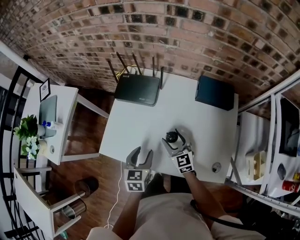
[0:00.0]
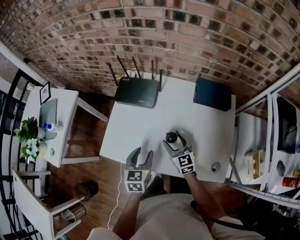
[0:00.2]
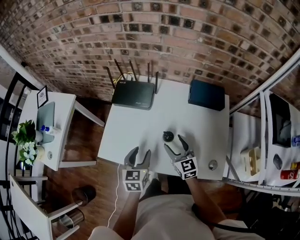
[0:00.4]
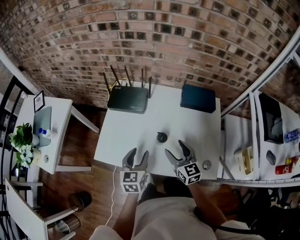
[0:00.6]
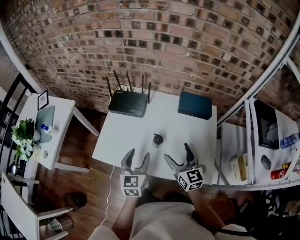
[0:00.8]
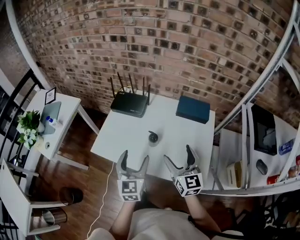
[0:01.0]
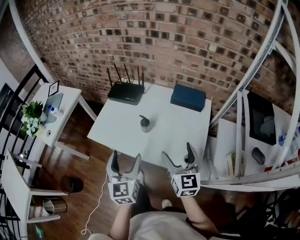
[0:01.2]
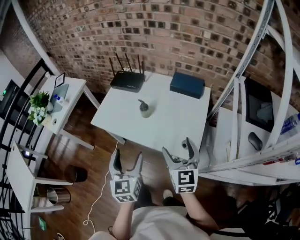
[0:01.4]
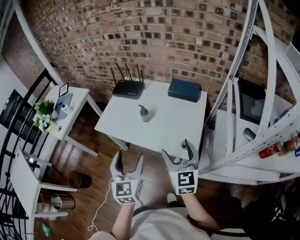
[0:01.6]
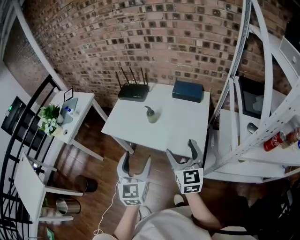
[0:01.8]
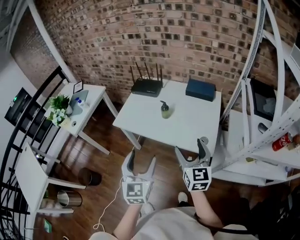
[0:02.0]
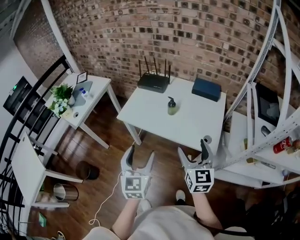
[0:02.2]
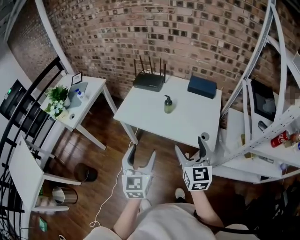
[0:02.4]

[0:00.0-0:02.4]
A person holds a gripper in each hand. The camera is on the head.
0:00.0 to 0:01.2: The left gripper travels upward and backward by approximately 25 cm, changes its angle by roughly 30 degrees, and opens up, while the right gripper travels backward, upward and to the right by some 35 cm.
0:01.2 to 0:02.4: Both grippers move backward and to the left, approximately 20 cm.

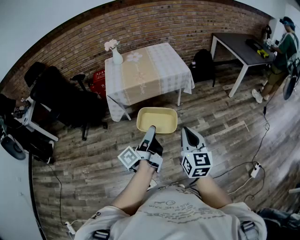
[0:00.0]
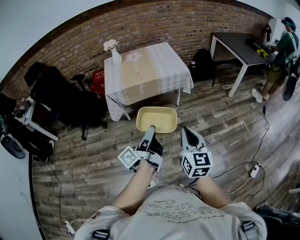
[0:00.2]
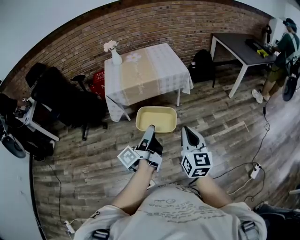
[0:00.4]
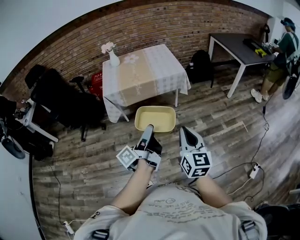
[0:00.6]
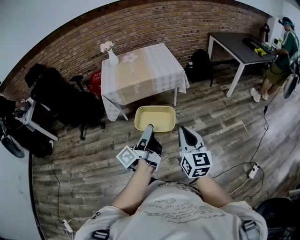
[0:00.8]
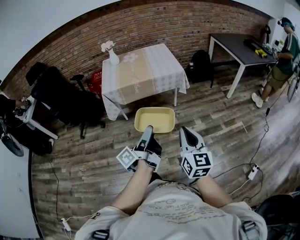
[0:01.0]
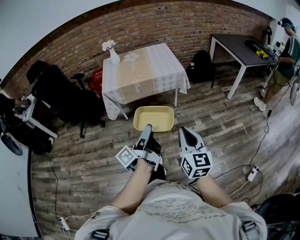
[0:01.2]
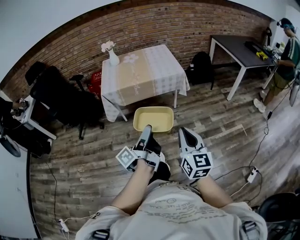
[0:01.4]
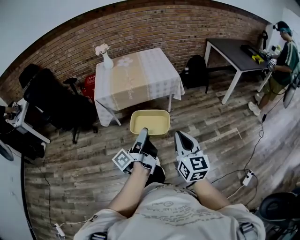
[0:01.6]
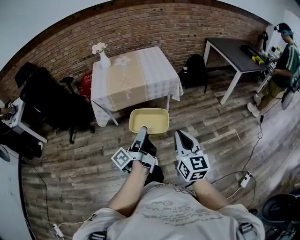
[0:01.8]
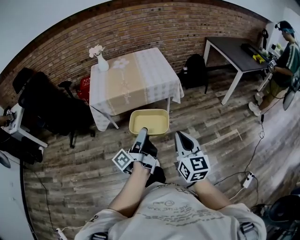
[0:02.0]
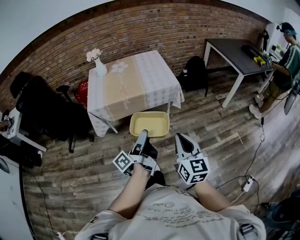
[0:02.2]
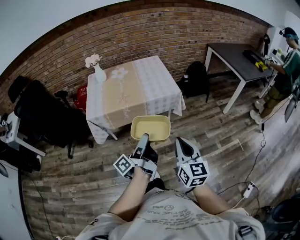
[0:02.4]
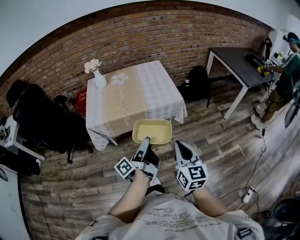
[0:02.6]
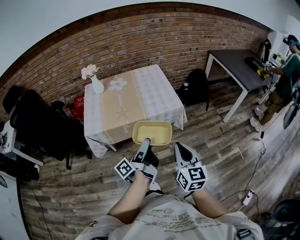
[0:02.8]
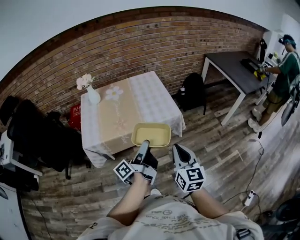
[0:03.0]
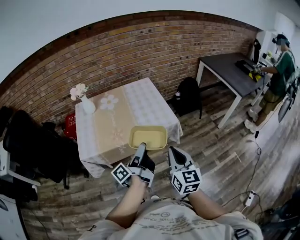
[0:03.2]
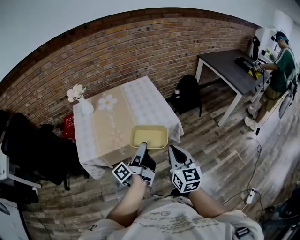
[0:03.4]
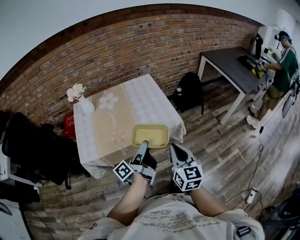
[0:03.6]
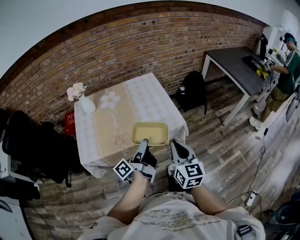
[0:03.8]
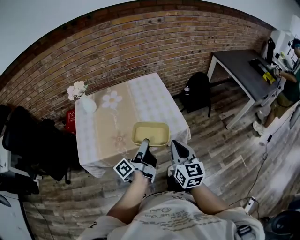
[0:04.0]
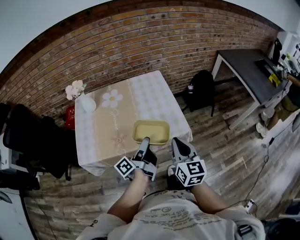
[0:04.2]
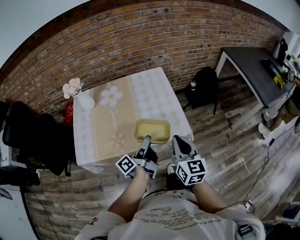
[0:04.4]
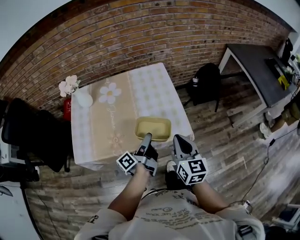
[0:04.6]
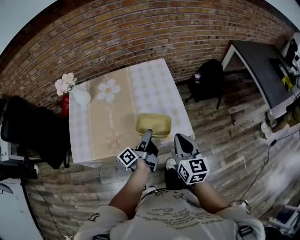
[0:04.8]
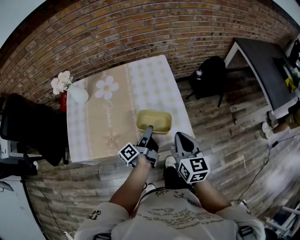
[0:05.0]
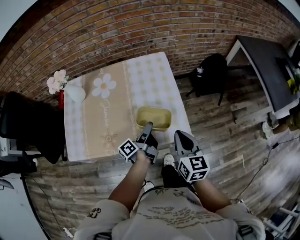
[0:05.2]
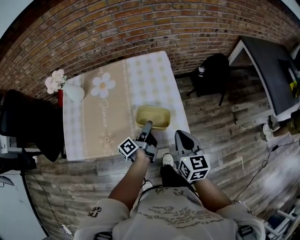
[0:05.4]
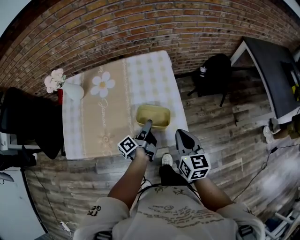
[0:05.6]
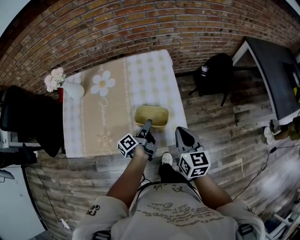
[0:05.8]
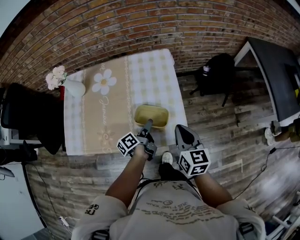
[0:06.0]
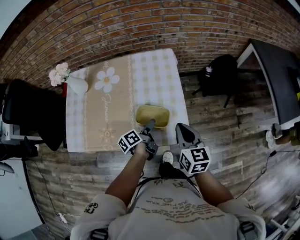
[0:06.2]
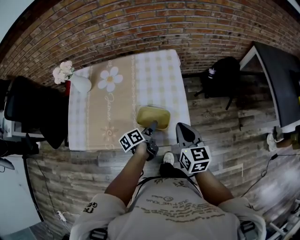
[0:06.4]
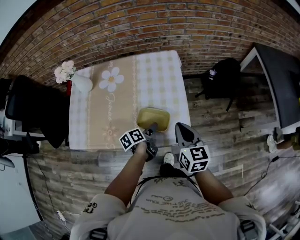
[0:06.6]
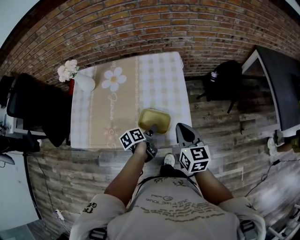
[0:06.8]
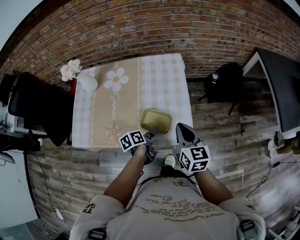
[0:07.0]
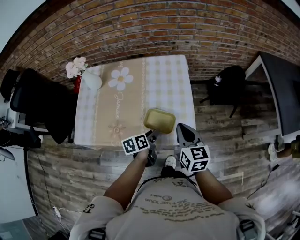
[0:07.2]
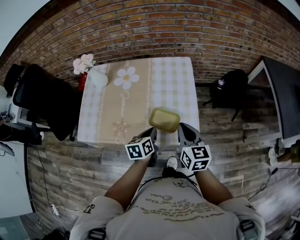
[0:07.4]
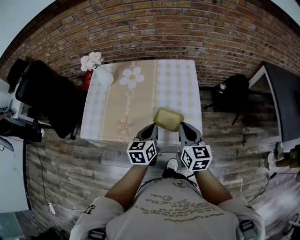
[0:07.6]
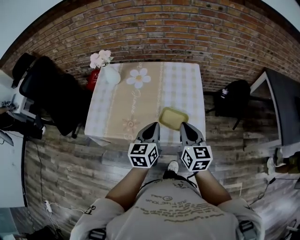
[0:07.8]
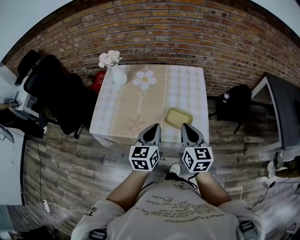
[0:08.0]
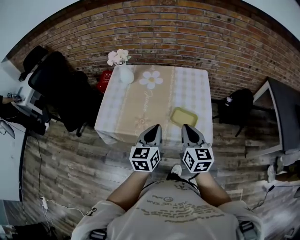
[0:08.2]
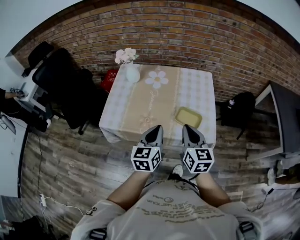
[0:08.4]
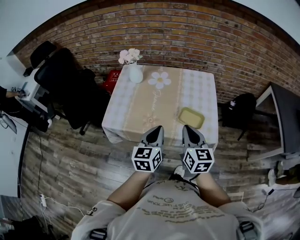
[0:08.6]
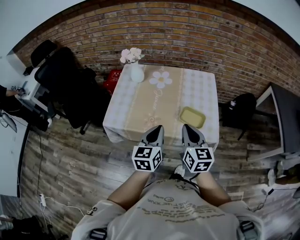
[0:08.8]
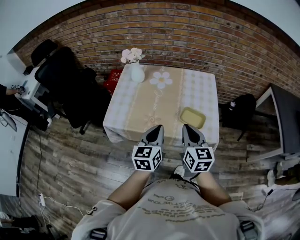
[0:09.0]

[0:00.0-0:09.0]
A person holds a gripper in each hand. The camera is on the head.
0:00.0 to 0:01.6: The right gripper ends up about 5 cm from where it was.
0:01.6 to 0:03.0: The right gripper moves approximately 35 cm.
0:03.0 to 0:04.4: The right gripper changes place by some 30 cm.
0:04.4 to 0:06.0: The right gripper moves some 20 cm.
0:06.0 to 0:07.6: The right gripper ends up some 10 cm from where it was.
0:07.6 to 0:09.0: The right gripper moves some 20 cm.

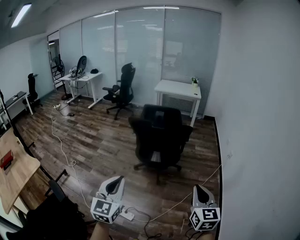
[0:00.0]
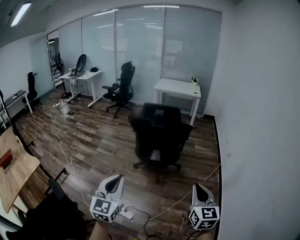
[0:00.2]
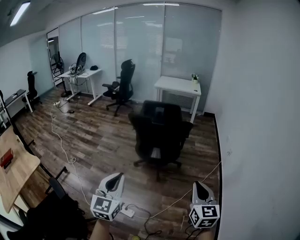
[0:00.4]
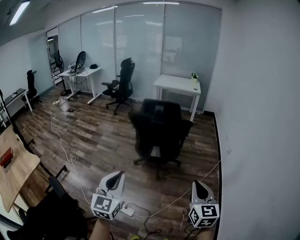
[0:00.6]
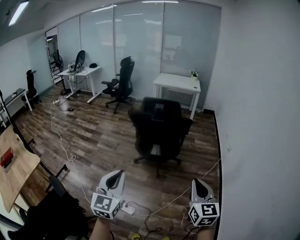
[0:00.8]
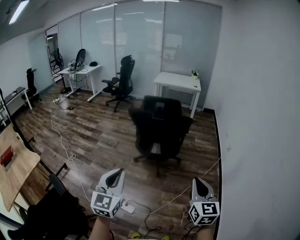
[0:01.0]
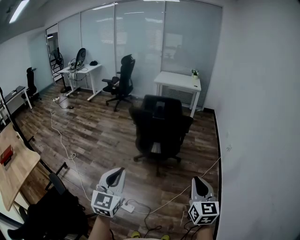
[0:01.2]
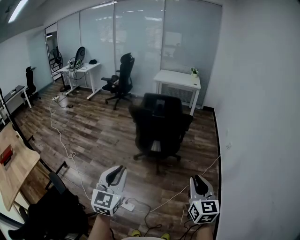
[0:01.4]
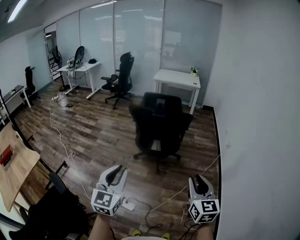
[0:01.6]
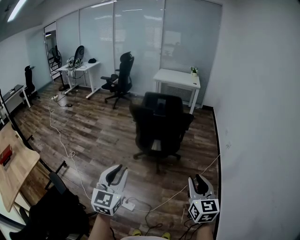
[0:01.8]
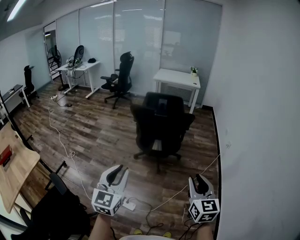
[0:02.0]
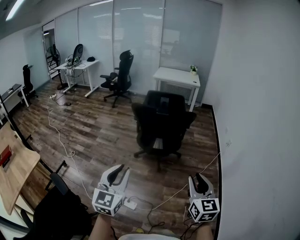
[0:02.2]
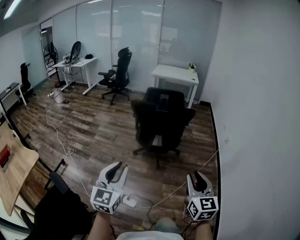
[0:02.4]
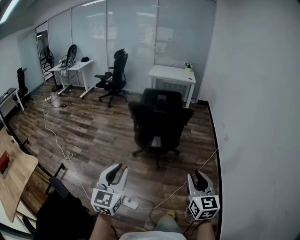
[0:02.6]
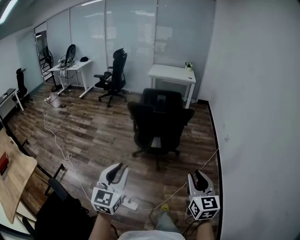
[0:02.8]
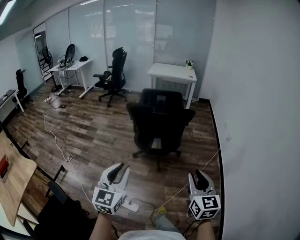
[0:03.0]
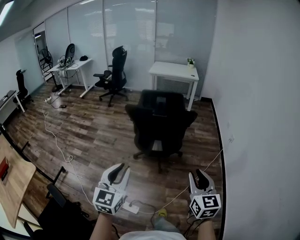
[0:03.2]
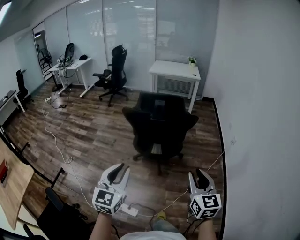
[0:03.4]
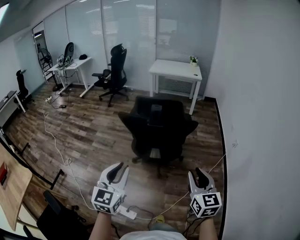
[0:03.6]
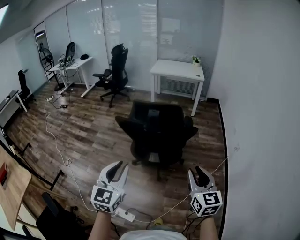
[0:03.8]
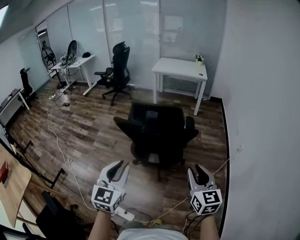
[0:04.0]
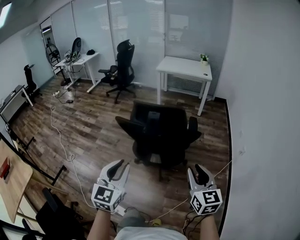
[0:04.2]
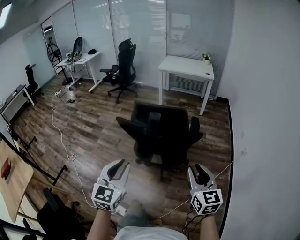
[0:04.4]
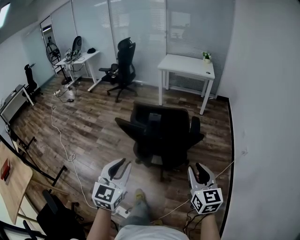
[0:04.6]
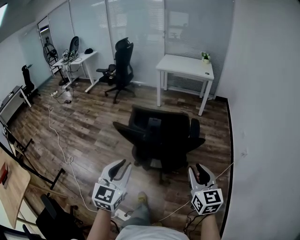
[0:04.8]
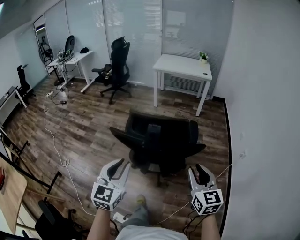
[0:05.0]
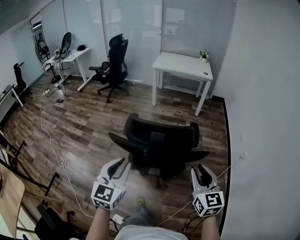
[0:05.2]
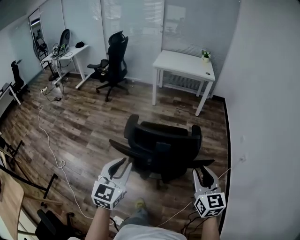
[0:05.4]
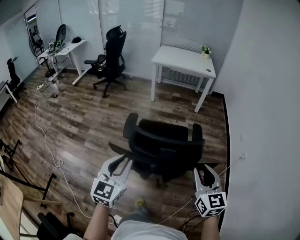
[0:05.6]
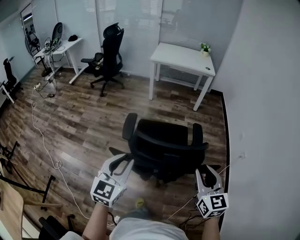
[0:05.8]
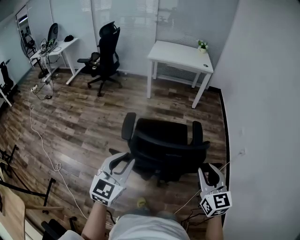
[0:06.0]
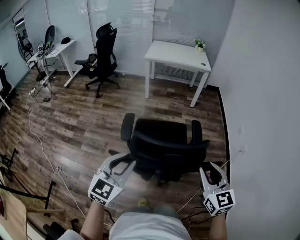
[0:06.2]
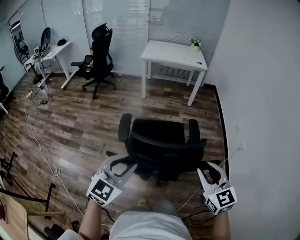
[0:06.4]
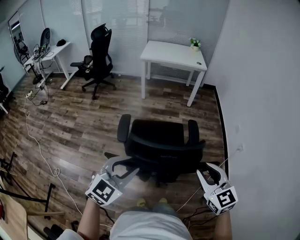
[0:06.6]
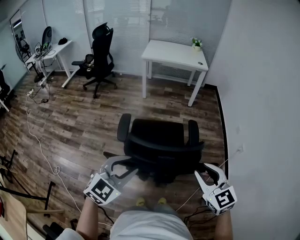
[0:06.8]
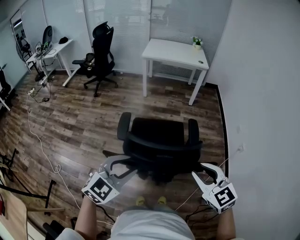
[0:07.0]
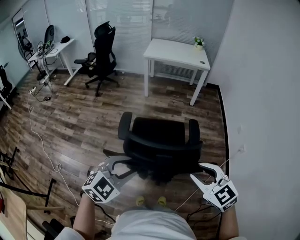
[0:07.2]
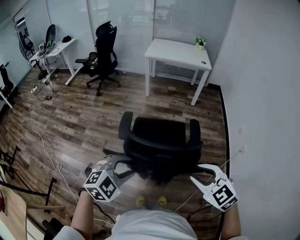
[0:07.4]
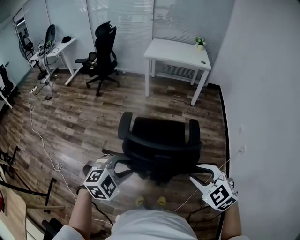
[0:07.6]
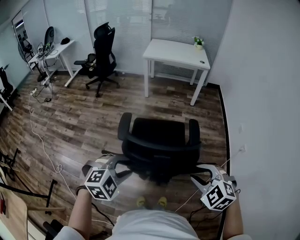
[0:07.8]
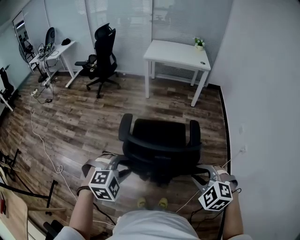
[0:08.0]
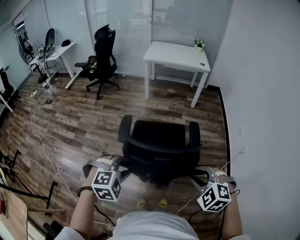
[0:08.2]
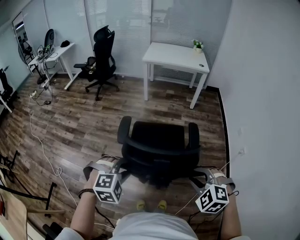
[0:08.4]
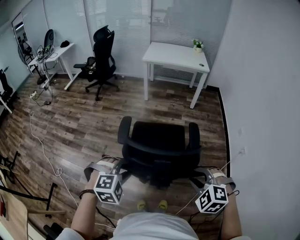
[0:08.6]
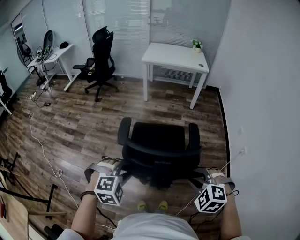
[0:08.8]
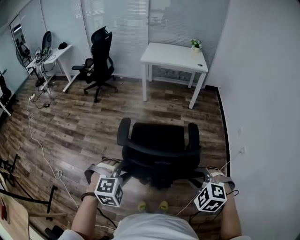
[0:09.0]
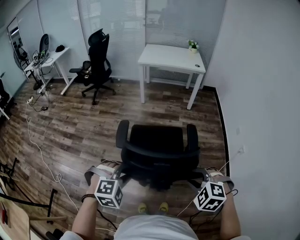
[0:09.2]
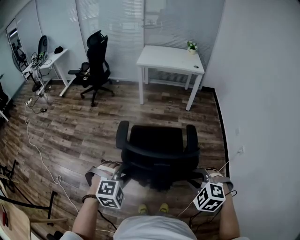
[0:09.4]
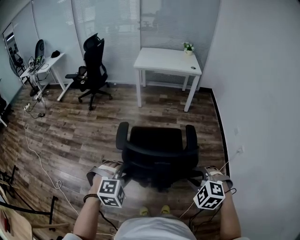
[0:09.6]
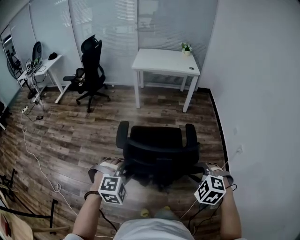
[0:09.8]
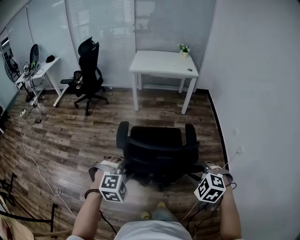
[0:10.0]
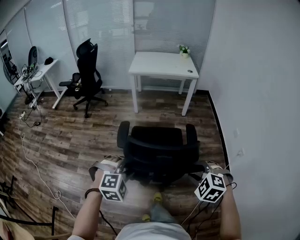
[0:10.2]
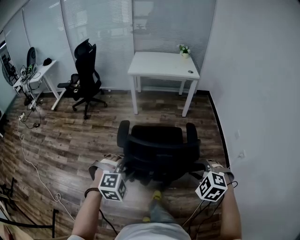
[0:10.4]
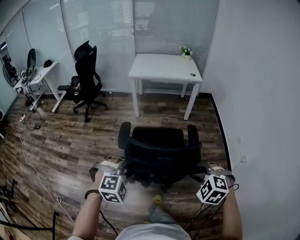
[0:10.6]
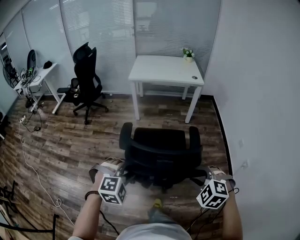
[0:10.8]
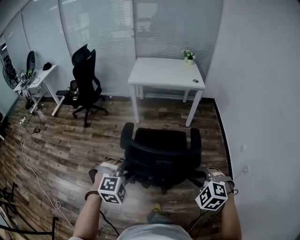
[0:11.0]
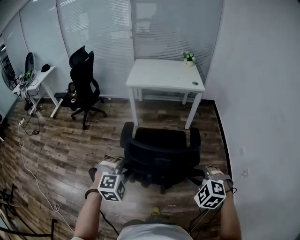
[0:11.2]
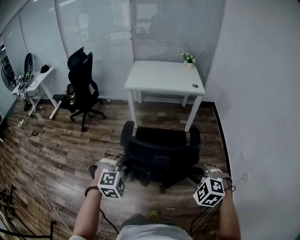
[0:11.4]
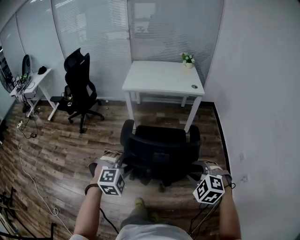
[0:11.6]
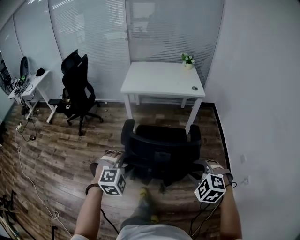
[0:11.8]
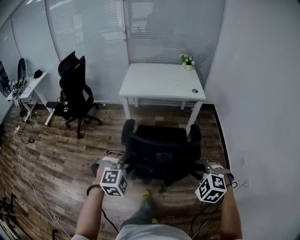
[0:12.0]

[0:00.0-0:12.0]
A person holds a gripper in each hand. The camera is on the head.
0:00.0 to 0:01.6: The right gripper opens.
0:01.6 to 0:03.0: The right gripper is displaced forward and to the left by about 10 cm. Meanwhile the left gripper heads forward, covering approximately 5 cm.
0:03.0 to 0:04.4: Both grippers travel together forward, some 30 cm.
0:04.4 to 0:06.0: Both grippers travel together forward, approximately 30 cm.
0:06.0 to 0:07.6: The left gripper goes some 10 cm to the right and downward, and tips its fingers downward by some 40 degrees, while the right gripper swivels approximately 50 degrees.
0:07.6 to 0:09.0: The right gripper turns by roughly 20 degrees.
0:09.0 to 0:10.4: The grippers both shift forward by approximately 20 cm.
0:10.4 to 0:12.0: The two grippers travel together, forward, roughly 40 cm.
